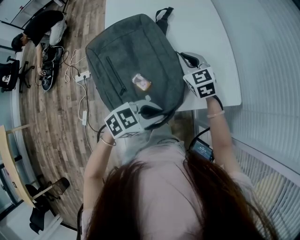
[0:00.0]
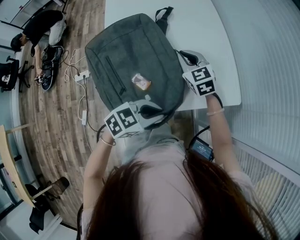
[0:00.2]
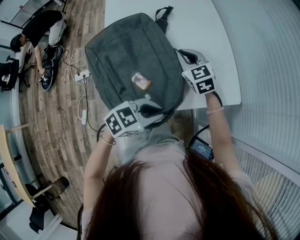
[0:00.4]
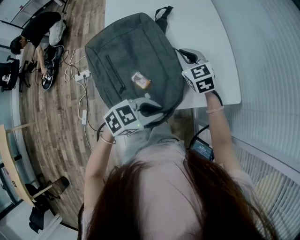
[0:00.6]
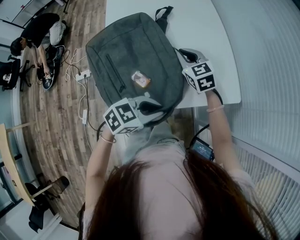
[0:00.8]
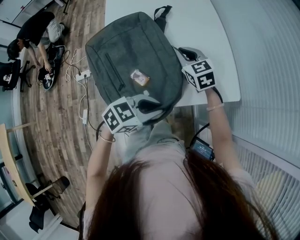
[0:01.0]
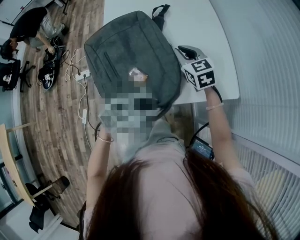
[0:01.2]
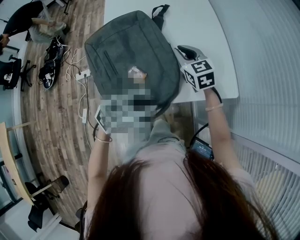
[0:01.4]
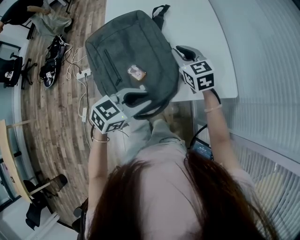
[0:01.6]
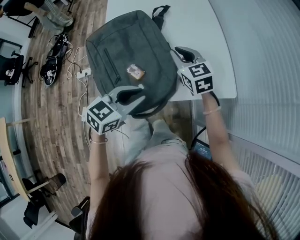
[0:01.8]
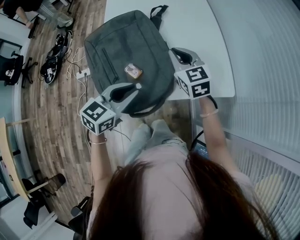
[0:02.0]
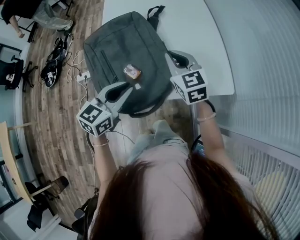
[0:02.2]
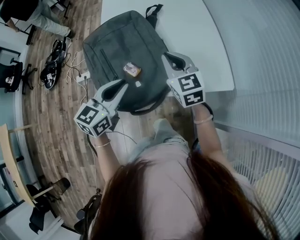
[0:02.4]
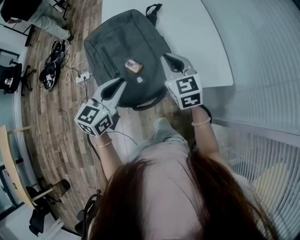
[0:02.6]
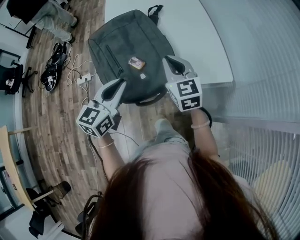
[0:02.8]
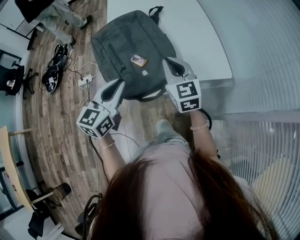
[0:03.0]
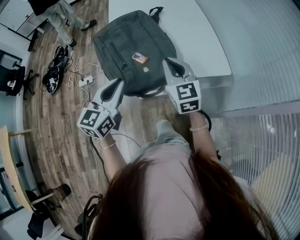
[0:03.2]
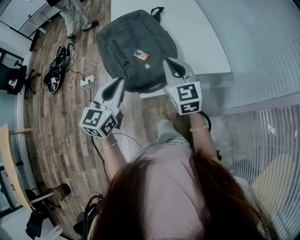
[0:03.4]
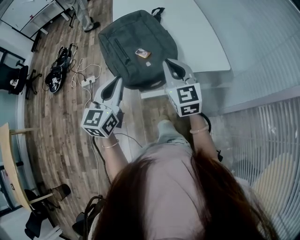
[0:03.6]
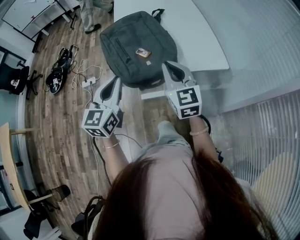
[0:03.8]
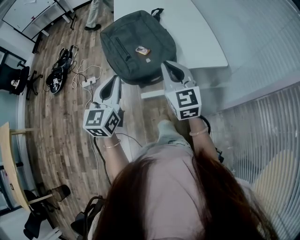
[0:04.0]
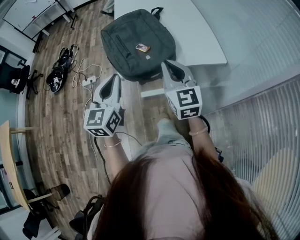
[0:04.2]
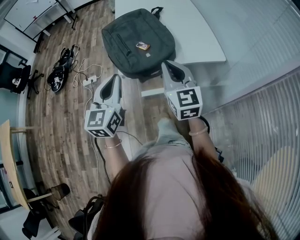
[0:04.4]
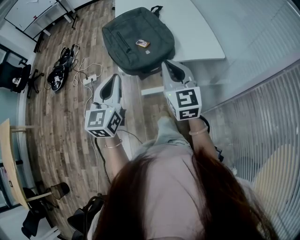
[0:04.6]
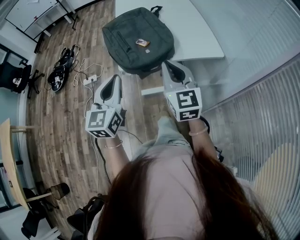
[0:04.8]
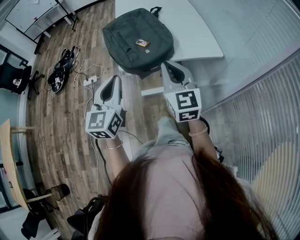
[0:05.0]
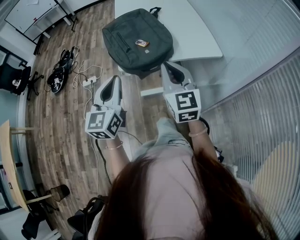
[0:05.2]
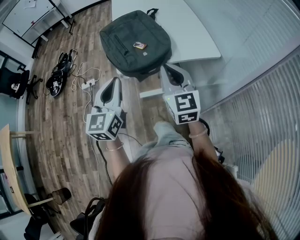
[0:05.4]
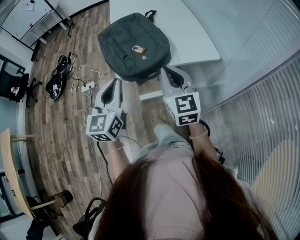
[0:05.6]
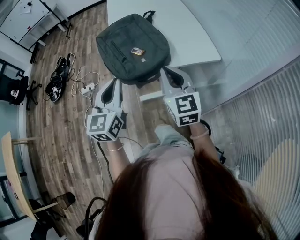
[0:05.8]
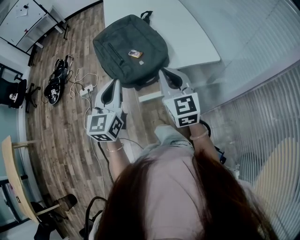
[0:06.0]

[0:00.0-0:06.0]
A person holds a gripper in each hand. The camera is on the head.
0:00.0 to 0:01.6: The grippers stay close to where they were, moving slightly.
0:01.6 to 0:03.0: The left gripper is displaced to the left and upward by approximately 15 cm, and changes its angle by some 40 degrees. Meanwhile the right gripper heads backward and upward, covering about 15 cm.
0:03.0 to 0:04.4: The right gripper shifts about 15 cm backward. Meanwhile the left gripper travels backward and upward by about 15 cm.
0:04.4 to 0:06.0: The grippers move only a little.

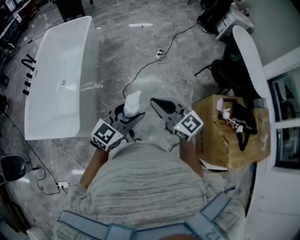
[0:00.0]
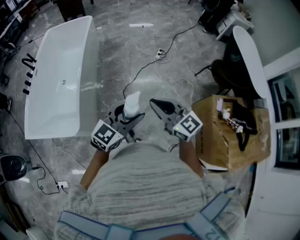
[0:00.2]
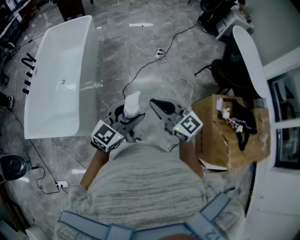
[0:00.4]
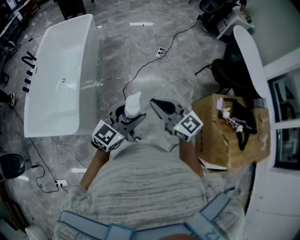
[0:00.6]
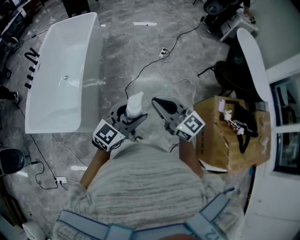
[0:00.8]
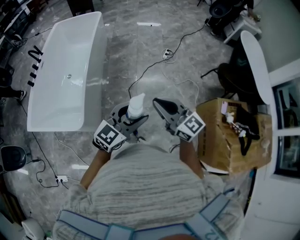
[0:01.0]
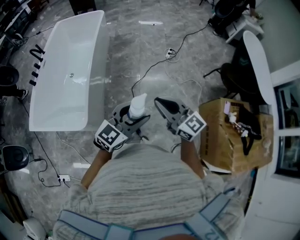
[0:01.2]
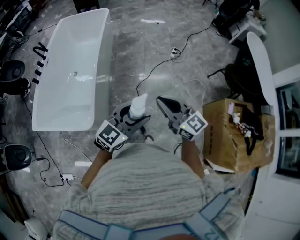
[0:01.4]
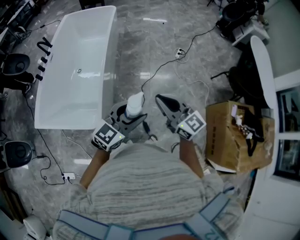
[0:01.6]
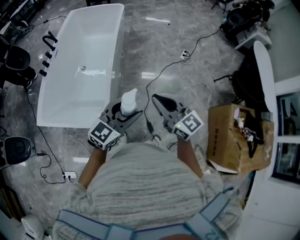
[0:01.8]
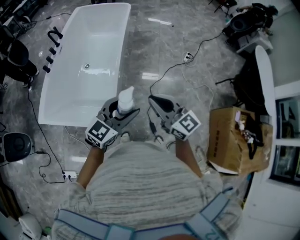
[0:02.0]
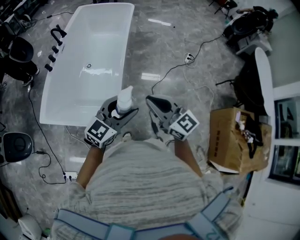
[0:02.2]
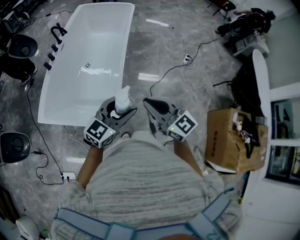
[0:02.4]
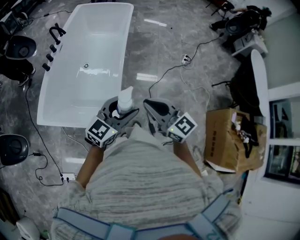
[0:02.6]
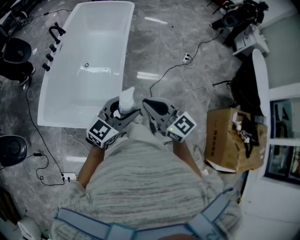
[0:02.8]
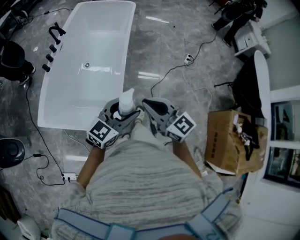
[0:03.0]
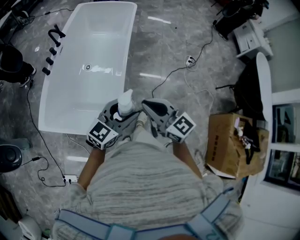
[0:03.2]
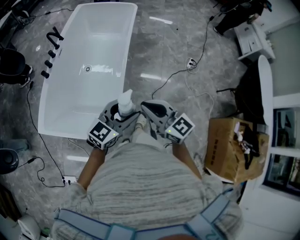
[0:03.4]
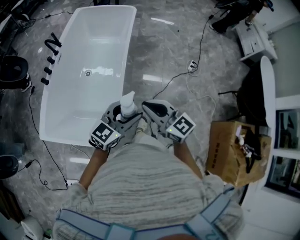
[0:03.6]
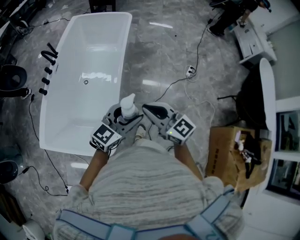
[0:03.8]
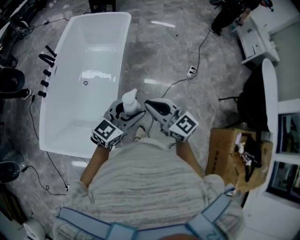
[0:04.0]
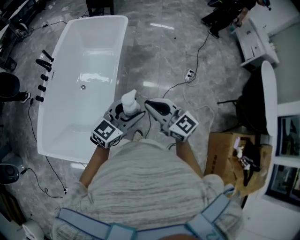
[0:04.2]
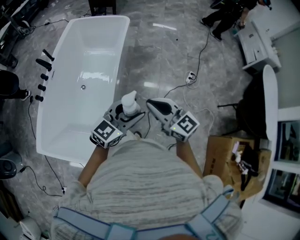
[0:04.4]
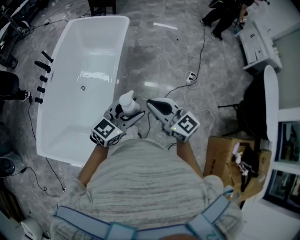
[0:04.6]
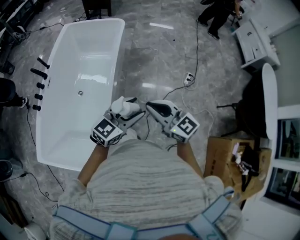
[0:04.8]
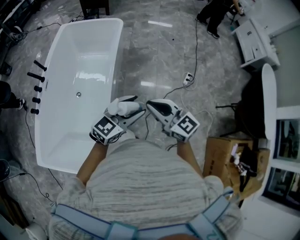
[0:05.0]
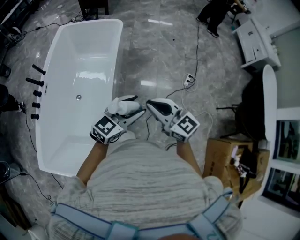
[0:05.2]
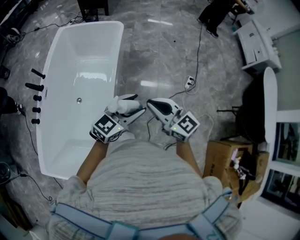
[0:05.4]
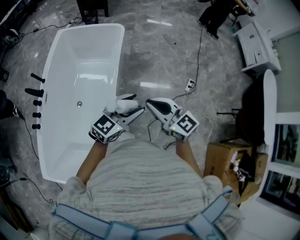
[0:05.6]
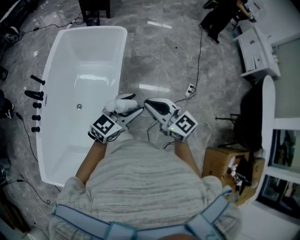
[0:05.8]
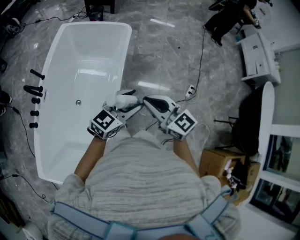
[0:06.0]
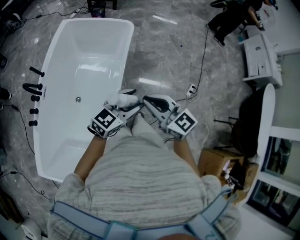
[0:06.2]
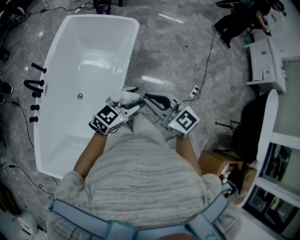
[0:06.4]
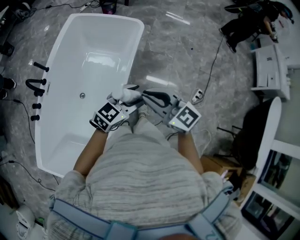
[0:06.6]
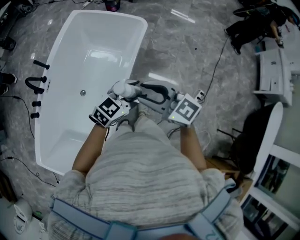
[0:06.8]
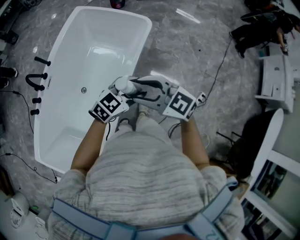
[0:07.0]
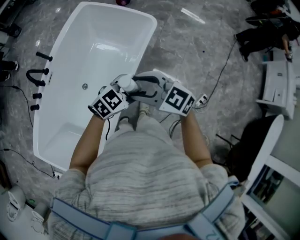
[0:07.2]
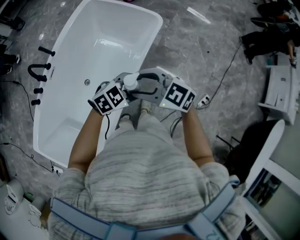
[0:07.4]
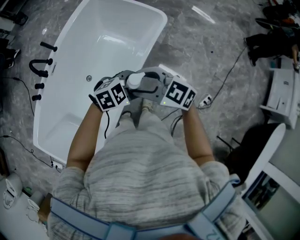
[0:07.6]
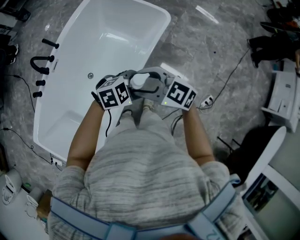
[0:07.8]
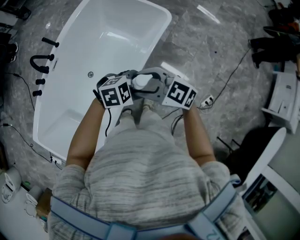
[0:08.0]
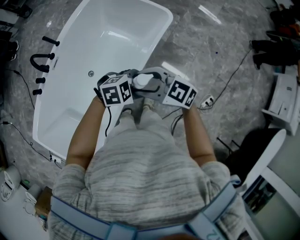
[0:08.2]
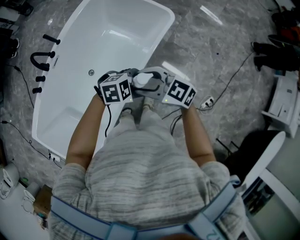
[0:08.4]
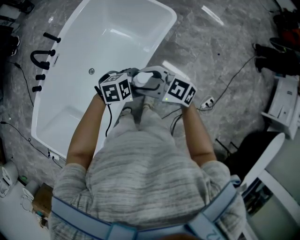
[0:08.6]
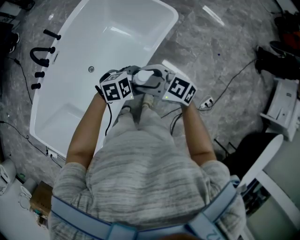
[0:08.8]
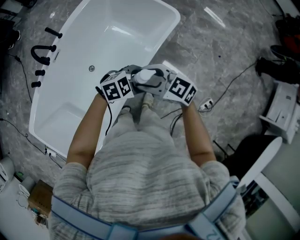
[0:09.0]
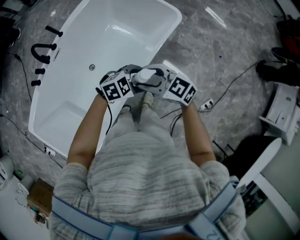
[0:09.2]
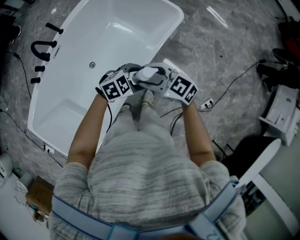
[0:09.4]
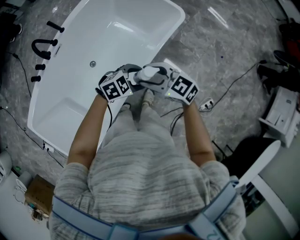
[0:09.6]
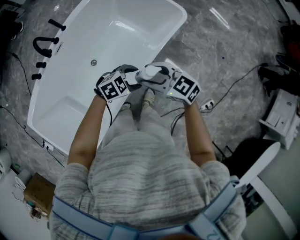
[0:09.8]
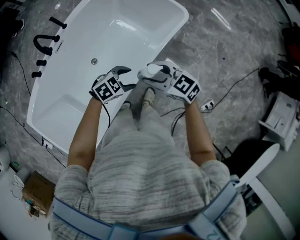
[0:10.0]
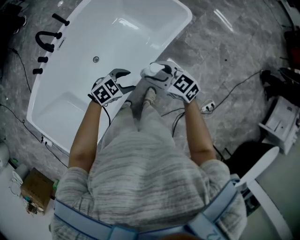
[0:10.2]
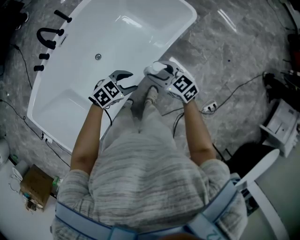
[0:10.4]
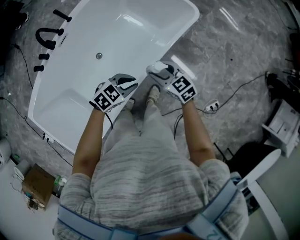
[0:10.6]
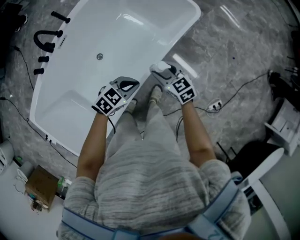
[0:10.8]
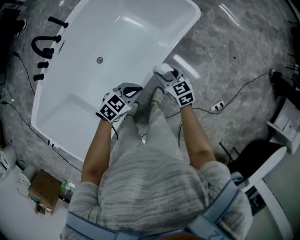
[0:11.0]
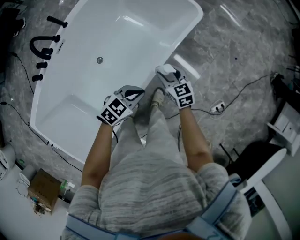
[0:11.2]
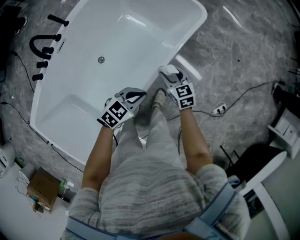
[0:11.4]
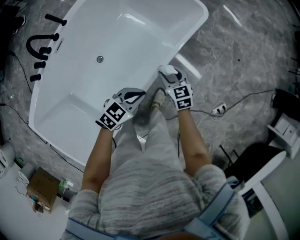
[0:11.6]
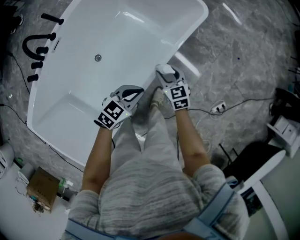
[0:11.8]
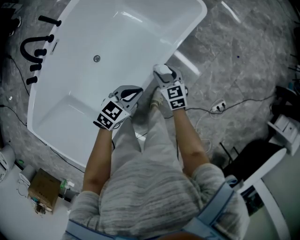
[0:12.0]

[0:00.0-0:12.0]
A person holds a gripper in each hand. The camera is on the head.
0:00.0 to 0:01.6: Both grippers move to the left, about 20 cm.
0:01.6 to 0:03.0: The grippers both shift to the left by some 25 cm.
0:03.0 to 0:04.4: Both grippers move forward and to the right, approximately 30 cm.
0:04.4 to 0:06.0: Both grippers move forward, some 30 cm.
0:06.0 to 0:07.6: The left gripper shifts by some 20 cm, and points its fingers about 30 degrees further downward. The right gripper moves about 20 cm, turns by roughly 50 degrees, and opens its fingers.
0:07.6 to 0:09.0: Both grippers travel together downward, about 5 cm.
0:09.0 to 0:10.4: The left gripper ends up approximately 10 cm from where it was, and swivels approximately 20 degrees. The right gripper shifts approximately 10 cm downward.
0:10.4 to 0:12.0: The left gripper closes up, while the right gripper travels downward by approximately 15 cm, and changes its angle by roughly 30 degrees.

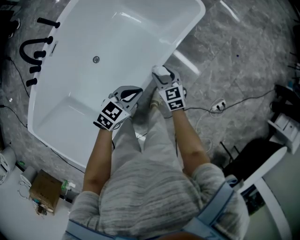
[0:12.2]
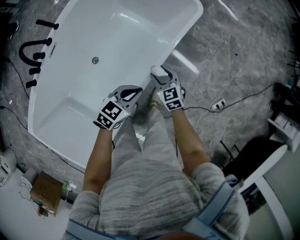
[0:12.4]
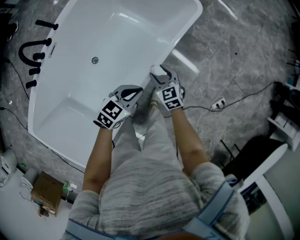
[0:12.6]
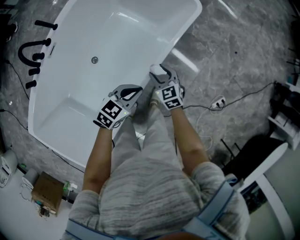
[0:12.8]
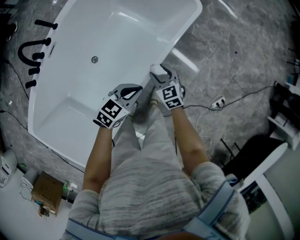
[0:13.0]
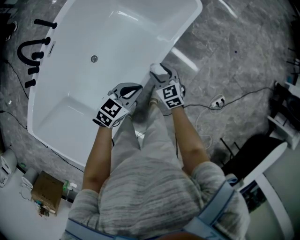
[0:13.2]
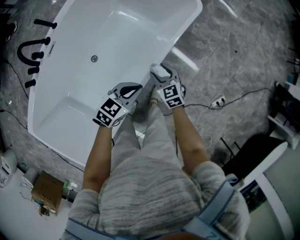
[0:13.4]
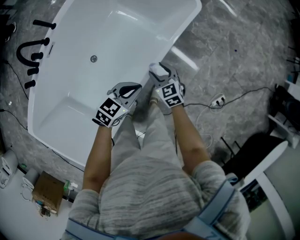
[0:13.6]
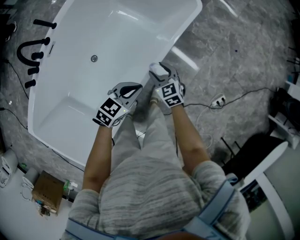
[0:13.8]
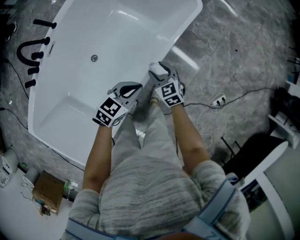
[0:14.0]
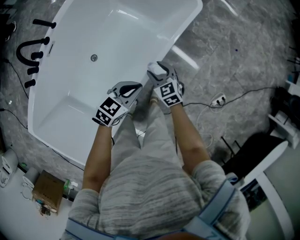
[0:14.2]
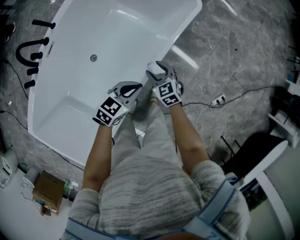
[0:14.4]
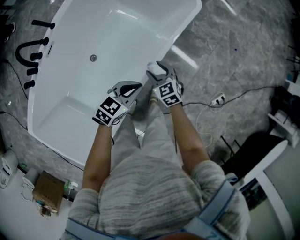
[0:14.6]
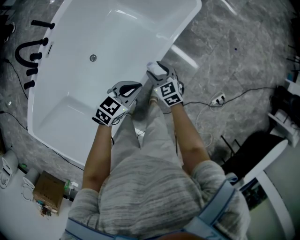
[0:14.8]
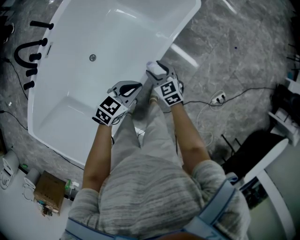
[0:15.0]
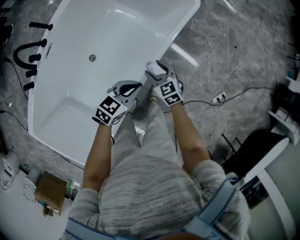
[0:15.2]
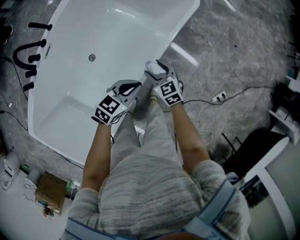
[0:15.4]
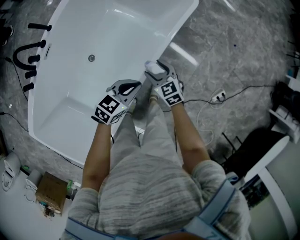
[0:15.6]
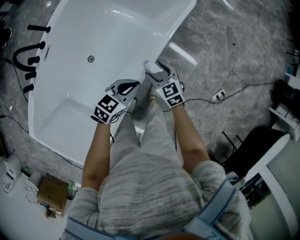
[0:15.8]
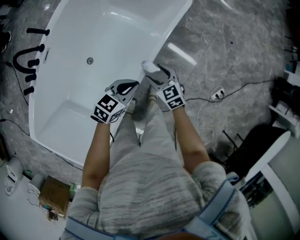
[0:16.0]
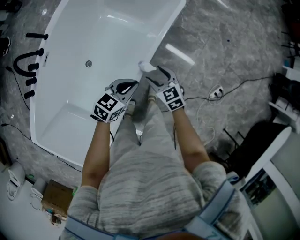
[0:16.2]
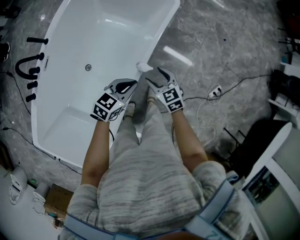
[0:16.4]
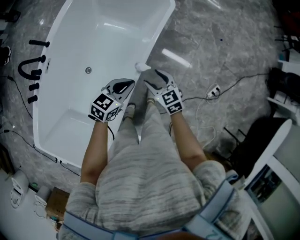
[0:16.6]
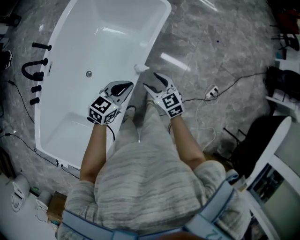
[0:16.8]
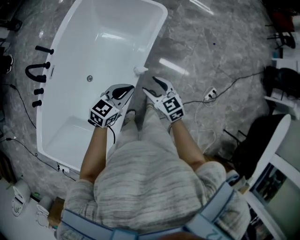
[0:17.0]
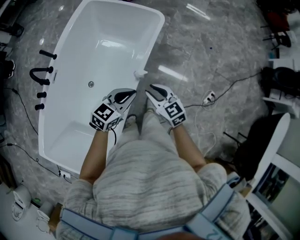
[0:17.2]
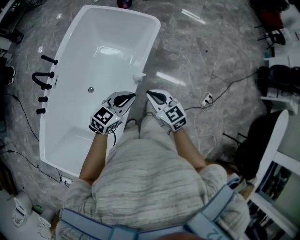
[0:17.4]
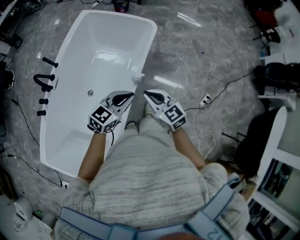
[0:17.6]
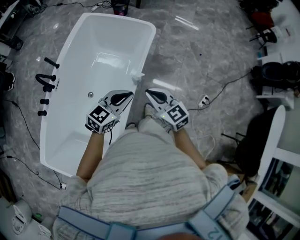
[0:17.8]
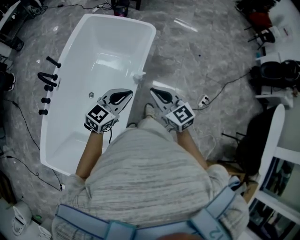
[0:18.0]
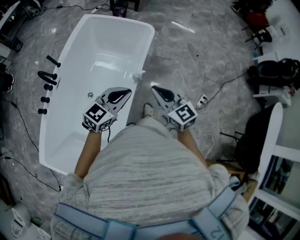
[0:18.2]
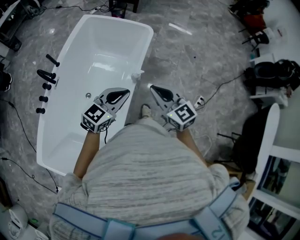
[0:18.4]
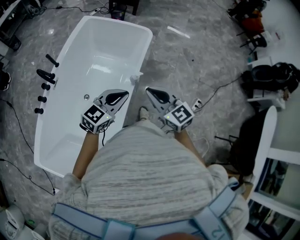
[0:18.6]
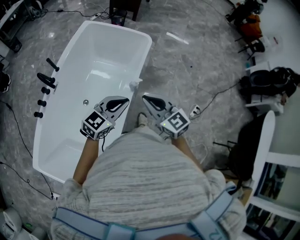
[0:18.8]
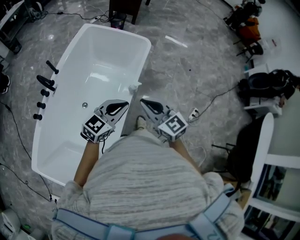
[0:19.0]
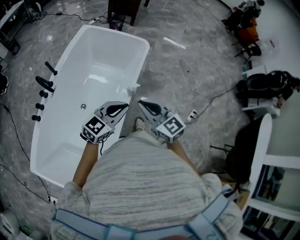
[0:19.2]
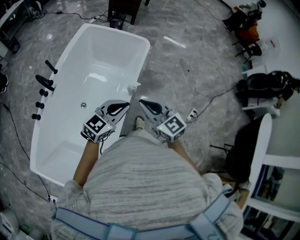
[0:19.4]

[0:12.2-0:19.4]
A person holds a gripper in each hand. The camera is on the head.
0:12.2 to 0:13.6: There are only small adjustments of the grippers.
0:13.6 to 0:15.0: Neither gripper changes place.
0:15.0 to 0:16.6: The left gripper goes some 5 cm upward; the right gripper is displaced upward and to the right by some 10 cm.
0:16.6 to 0:18.0: The two grippers go about 25 cm upward and backward. The left gripper rotates roughly 20 degrees, while the right gripper closes up.
0:18.0 to 0:19.4: The right gripper ends up roughly 5 cm from where it was.
